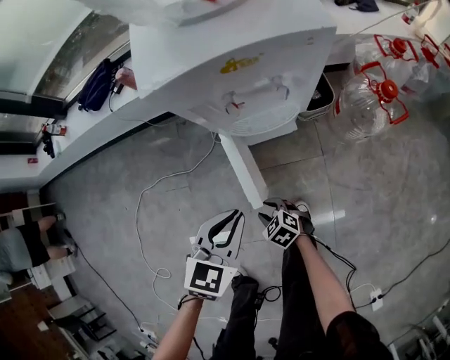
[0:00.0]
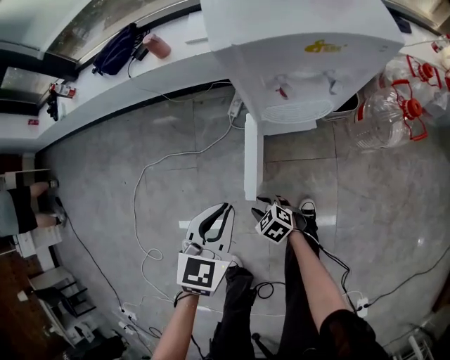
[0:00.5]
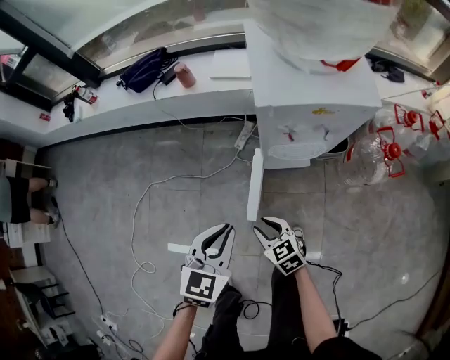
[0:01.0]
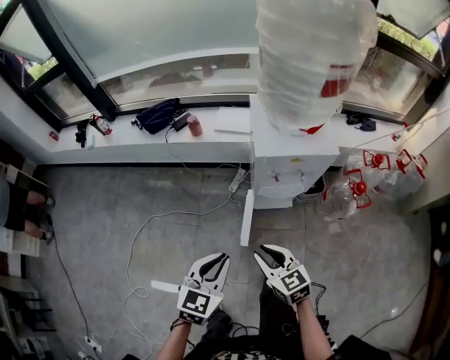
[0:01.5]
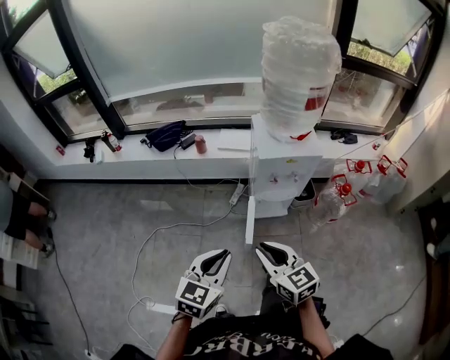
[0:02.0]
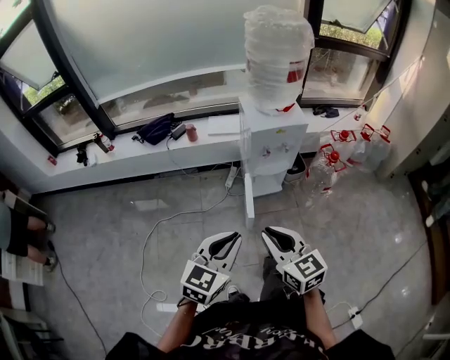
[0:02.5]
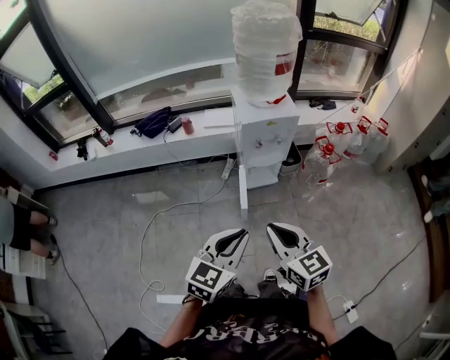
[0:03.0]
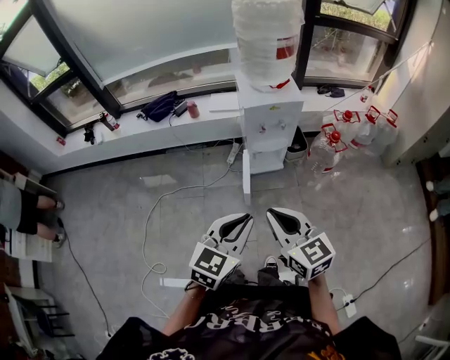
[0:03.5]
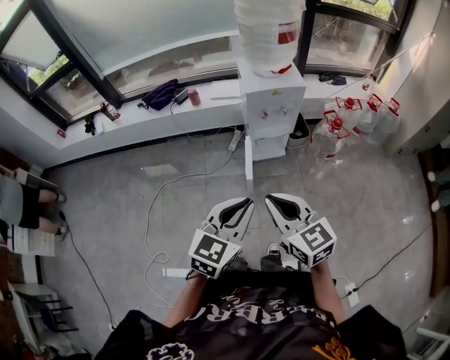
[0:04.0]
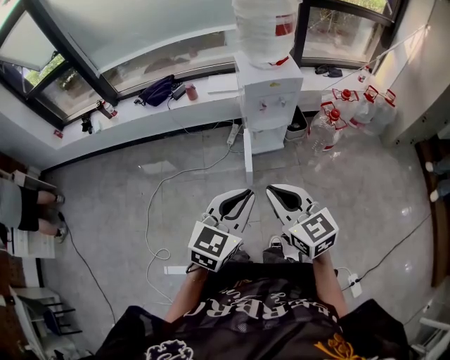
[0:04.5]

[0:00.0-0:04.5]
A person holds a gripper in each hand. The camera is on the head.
0:00.0 to 0:02.0: The left gripper heads upward, to the left and backward, covering roughly 40 cm. Meanwhile the right gripper goes approximately 60 cm upward, and angles its fingers upward, by approximately 40 degrees.
0:02.0 to 0:04.5: The right gripper heads backward and upward, covering some 20 cm; the left gripper is displaced backward, upward and to the right by about 20 cm.

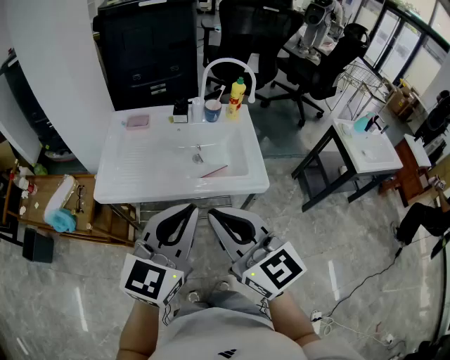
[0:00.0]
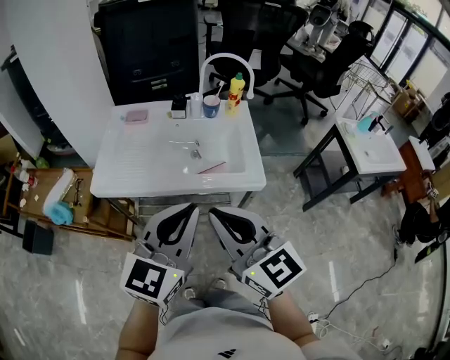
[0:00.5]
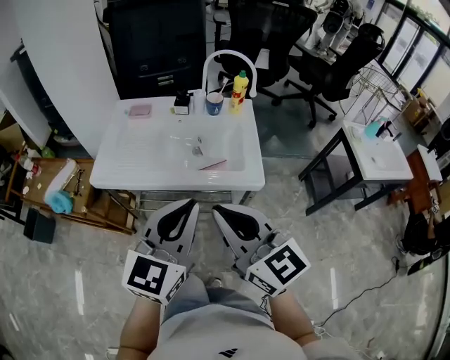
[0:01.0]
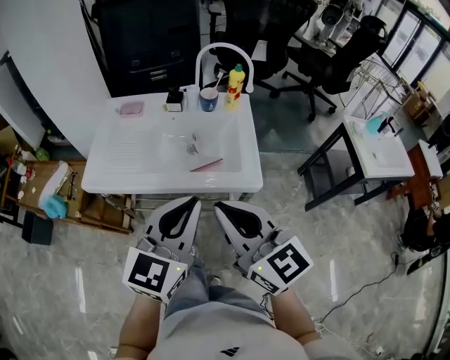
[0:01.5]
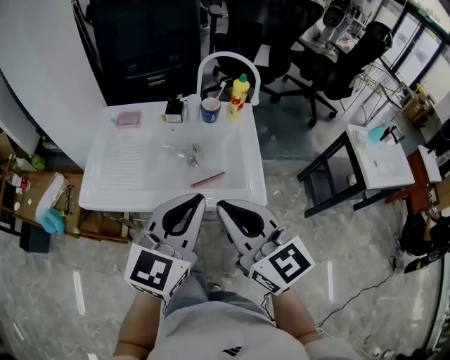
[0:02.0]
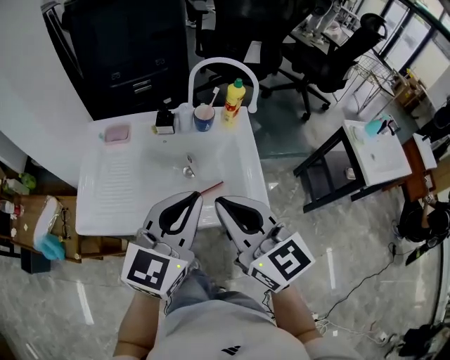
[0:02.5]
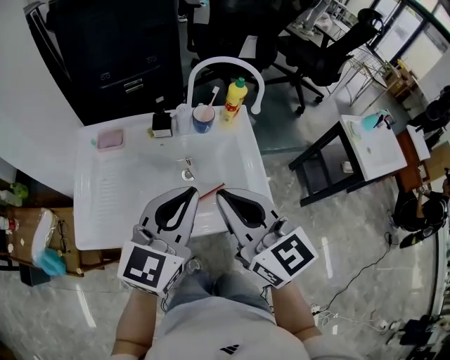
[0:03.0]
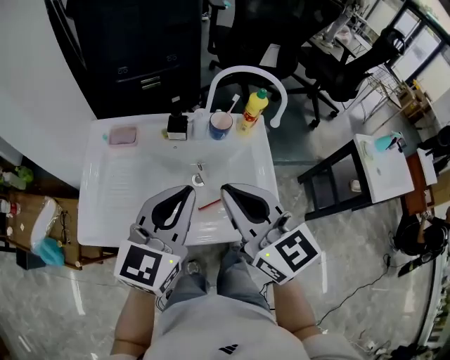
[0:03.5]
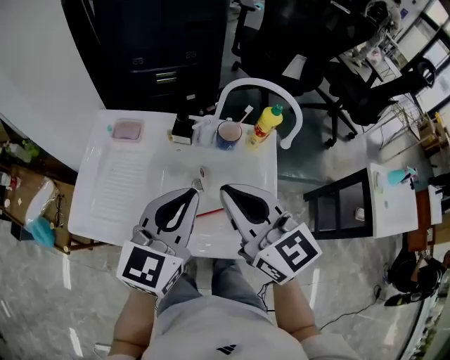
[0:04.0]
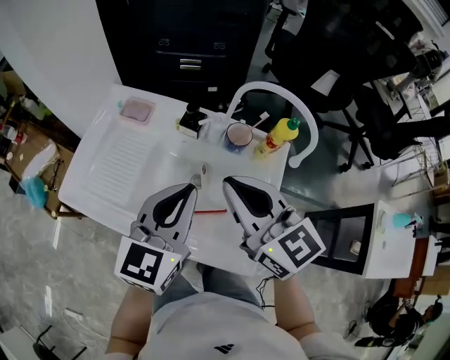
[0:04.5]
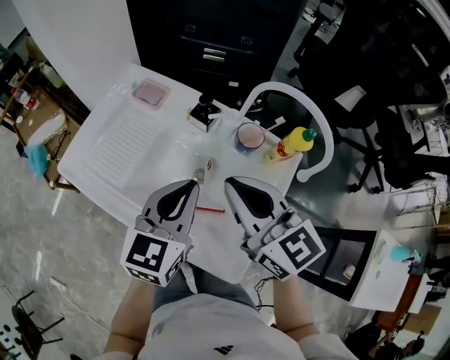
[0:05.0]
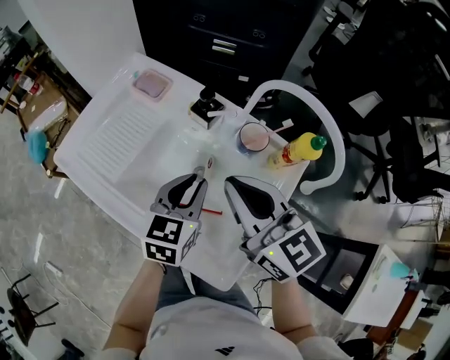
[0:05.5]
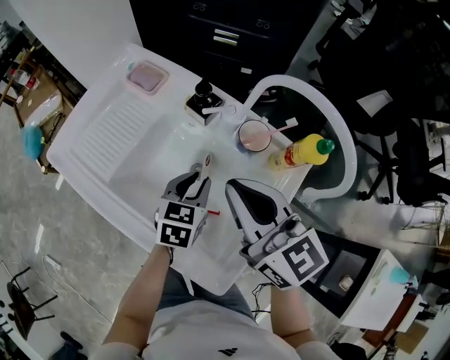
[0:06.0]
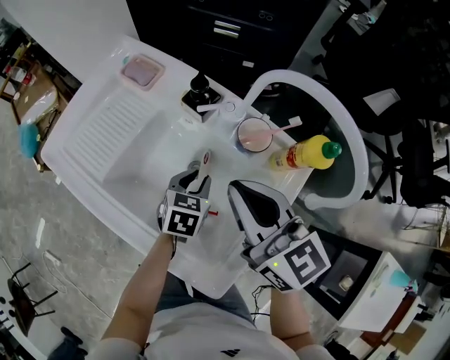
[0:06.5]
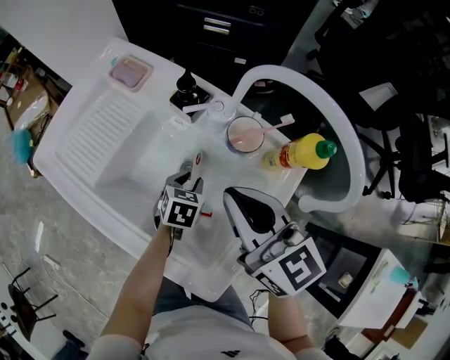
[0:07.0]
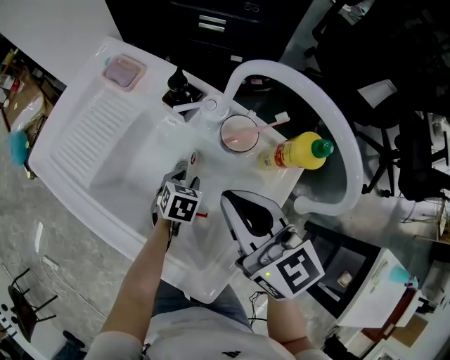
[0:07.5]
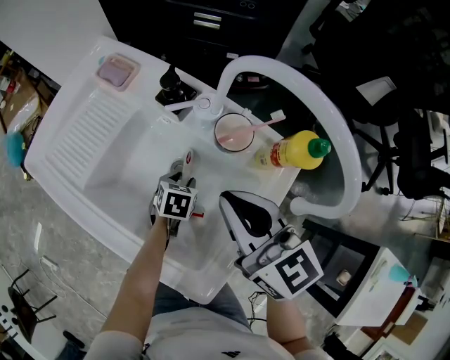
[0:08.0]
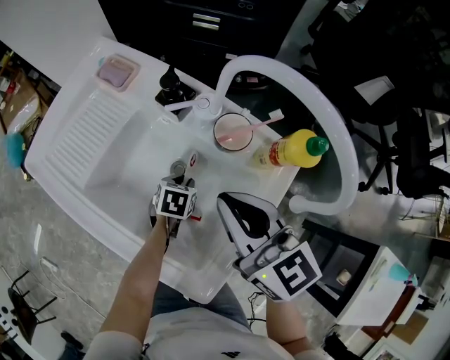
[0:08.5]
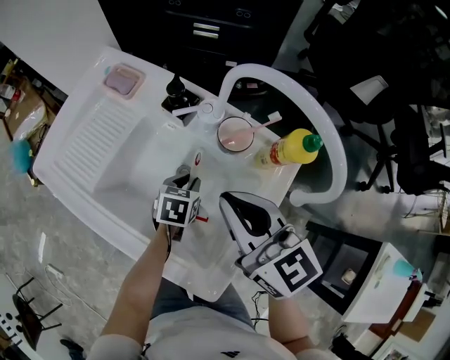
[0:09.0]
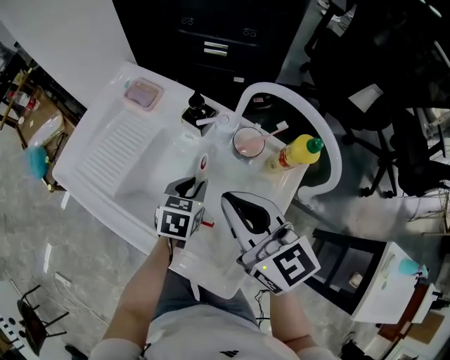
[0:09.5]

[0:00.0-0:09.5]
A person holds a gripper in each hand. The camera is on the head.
0:00.0 to 0:02.0: The two grippers go roughly 15 cm forward and to the right.
0:02.0 to 0:04.0: Both grippers travel together forward, about 20 cm.
0:04.0 to 0:05.5: The right gripper shifts by some 10 cm, and changes its angle by some 30 degrees. Meanwhile the left gripper goes about 15 cm downward, and turns by approximately 40 degrees.
0:05.5 to 0:07.5: The right gripper heads downward, covering roughly 5 cm, while the left gripper travels downward by some 25 cm, and points its fingers about 30 degrees further downward.
0:07.5 to 0:09.5: The left gripper shifts about 10 cm upward, while the right gripper moves about 5 cm.

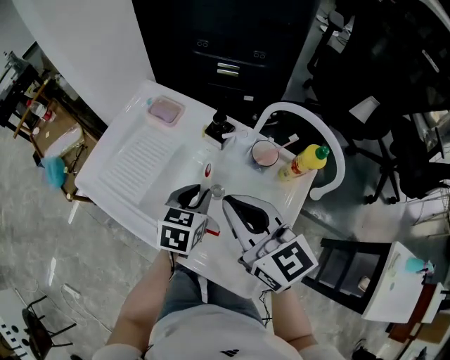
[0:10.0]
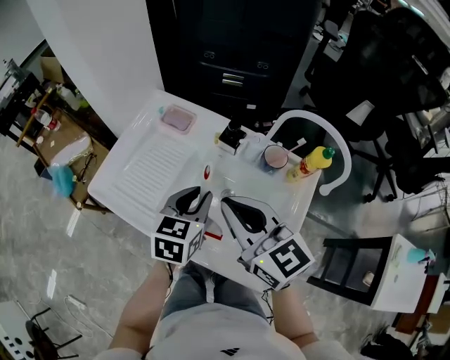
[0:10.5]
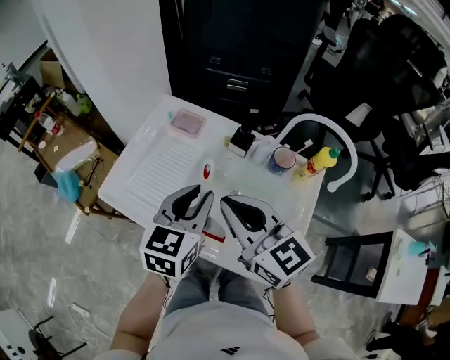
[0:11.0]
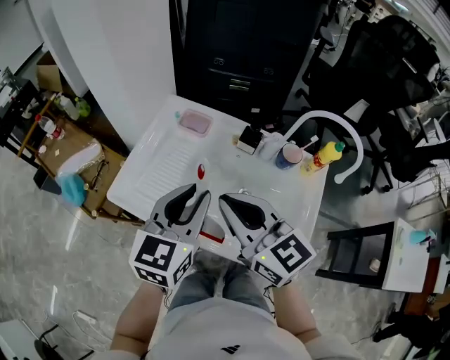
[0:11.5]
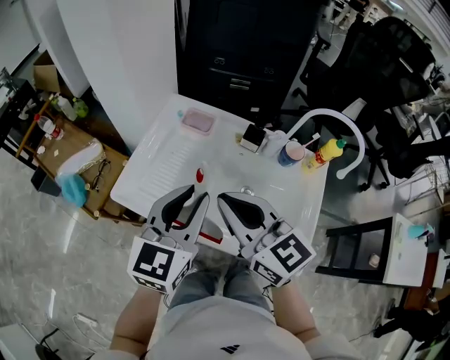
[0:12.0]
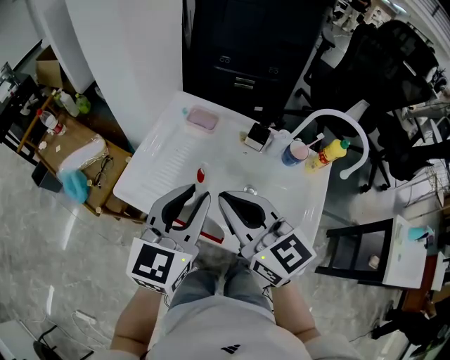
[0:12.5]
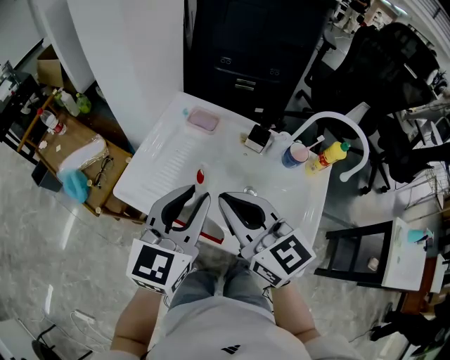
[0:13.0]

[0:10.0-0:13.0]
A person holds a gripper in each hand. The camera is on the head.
0:10.0 to 0:11.5: The right gripper is displaced to the left by approximately 15 cm. Meanwhile the left gripper goes approximately 25 cm upward and to the left, and turns by about 30 degrees.
0:11.5 to 0:13.0: The grippers stay close to where they were, moving slightly.

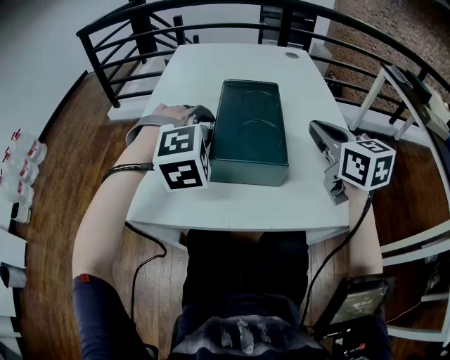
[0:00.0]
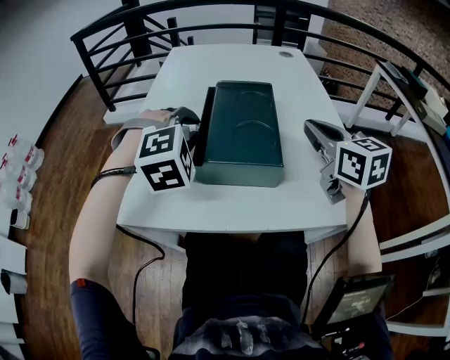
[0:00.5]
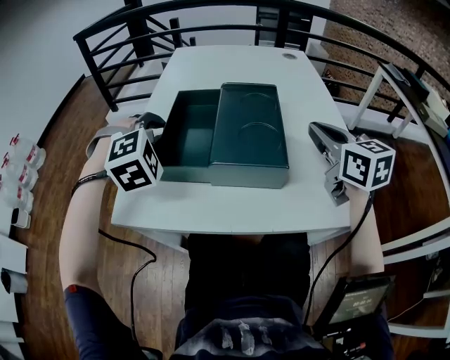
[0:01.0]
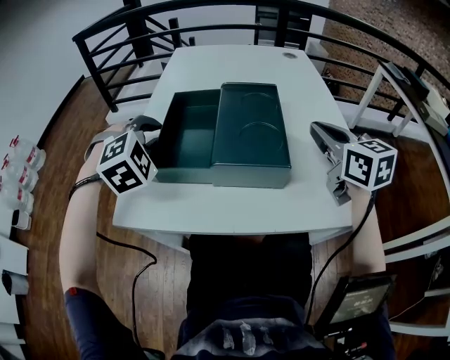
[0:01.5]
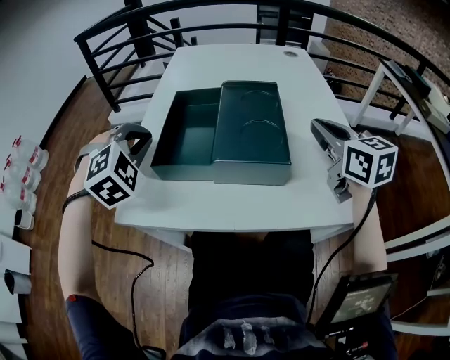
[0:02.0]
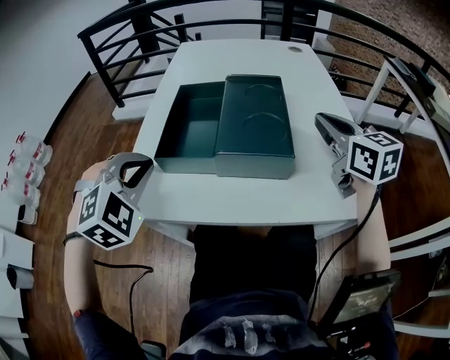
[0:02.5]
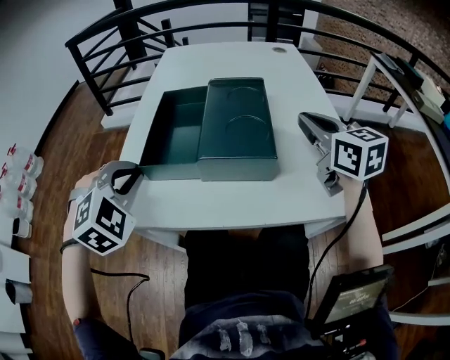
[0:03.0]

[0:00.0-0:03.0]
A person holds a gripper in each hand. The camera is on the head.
0:00.0 to 0:01.5: The left gripper shifts roughly 10 cm to the left.
0:01.5 to 0:03.0: The left gripper heads backward, covering some 10 cm.

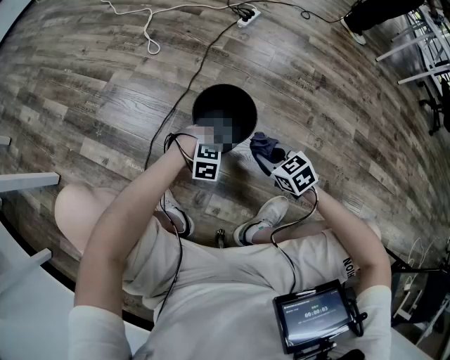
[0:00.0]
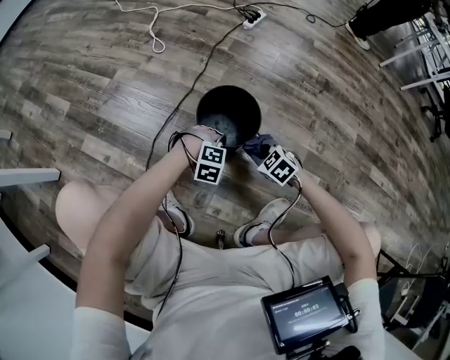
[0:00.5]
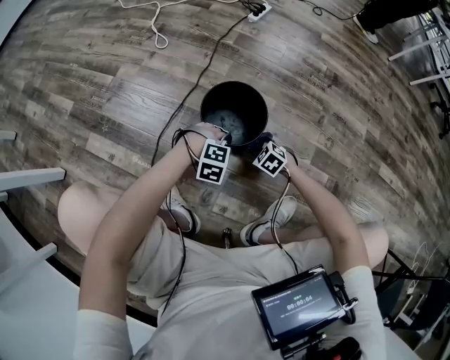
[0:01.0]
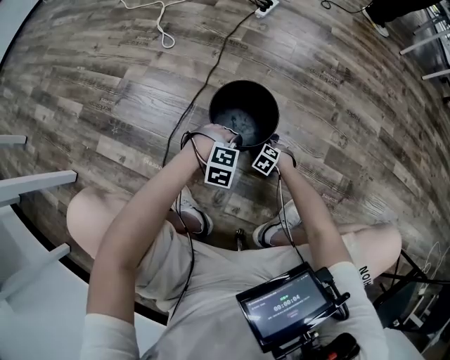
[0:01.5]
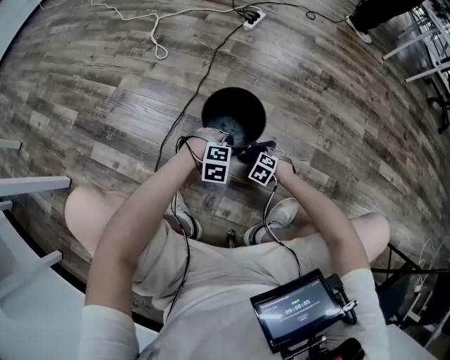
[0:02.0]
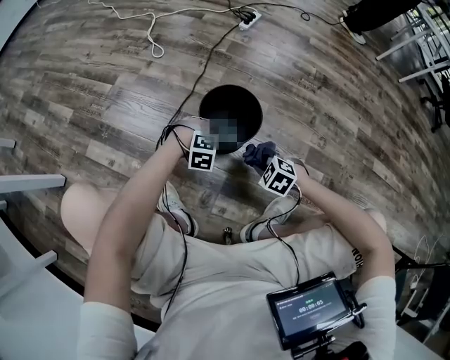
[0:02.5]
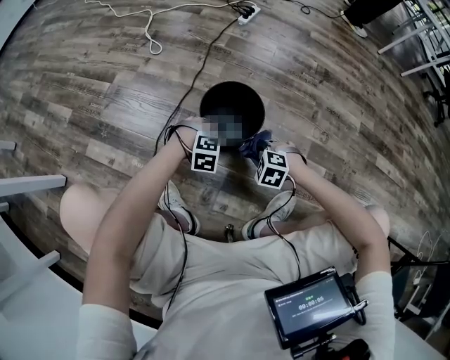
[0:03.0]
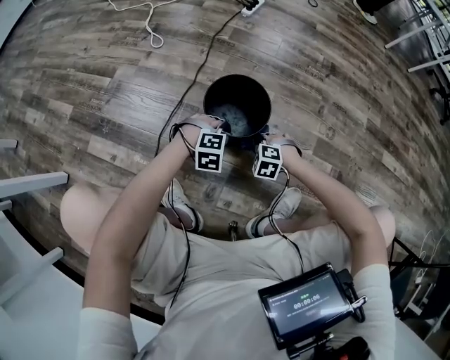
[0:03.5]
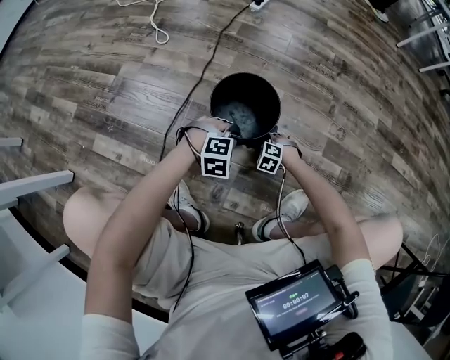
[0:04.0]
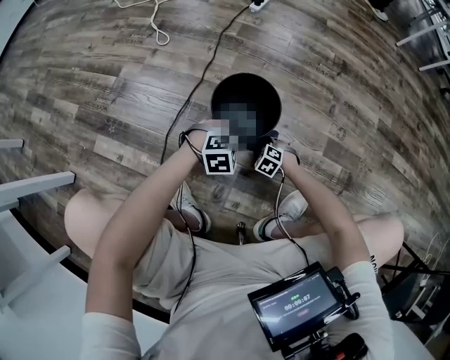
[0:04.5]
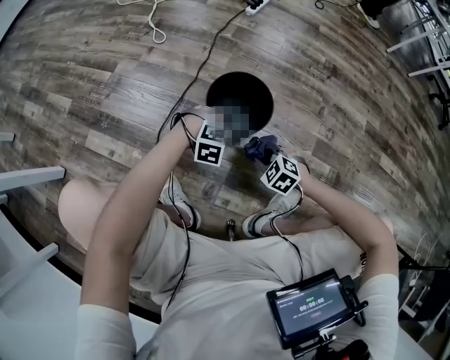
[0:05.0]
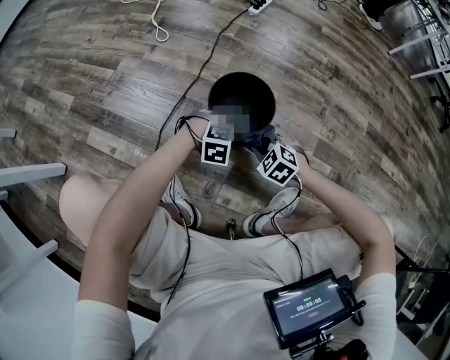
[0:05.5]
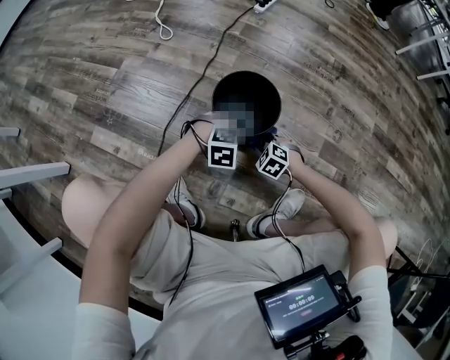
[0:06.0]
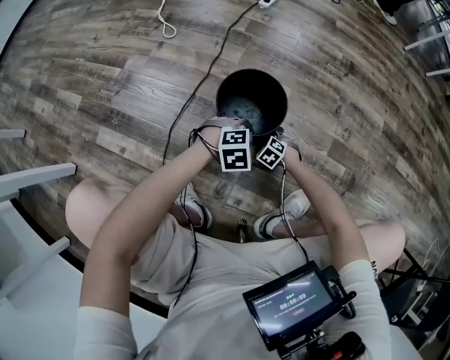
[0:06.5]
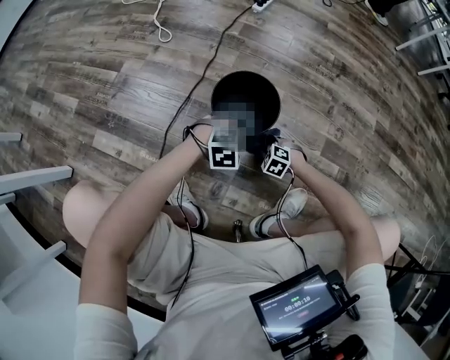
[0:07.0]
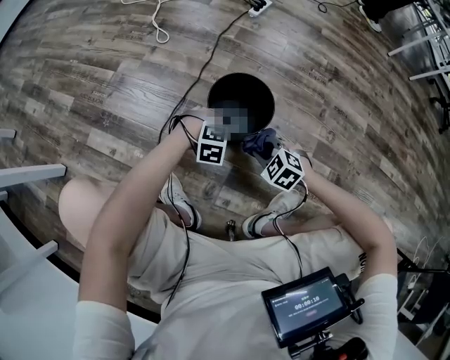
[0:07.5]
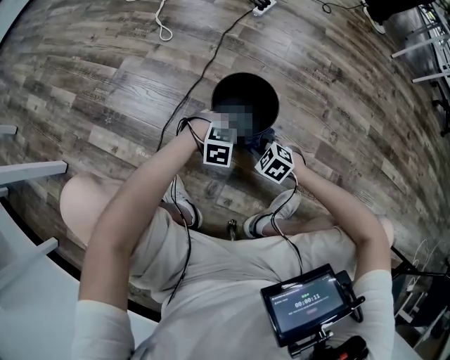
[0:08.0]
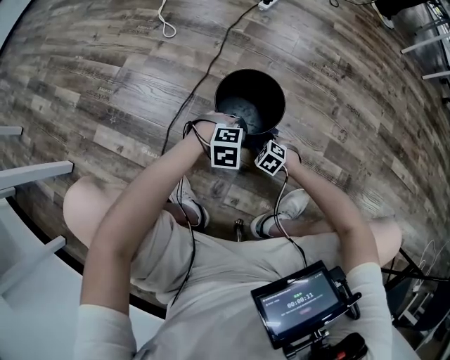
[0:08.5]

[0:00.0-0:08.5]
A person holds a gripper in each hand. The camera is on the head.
0:00.0 to 0:02.0: The right gripper travels downward by roughly 20 cm, and turns by about 40 degrees.
0:02.0 to 0:04.0: The right gripper goes upward and returns, roughly 15 cm each way.
0:04.0 to 0:06.5: The right gripper goes upward and returns, roughly 20 cm each way.
0:06.5 to 0:08.5: The left gripper opens, then closes again. Meanwhile the right gripper goes upward and returns, roughly 20 cm each way.
